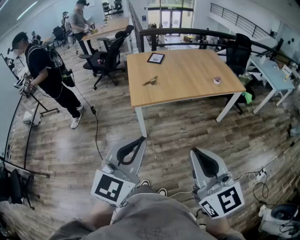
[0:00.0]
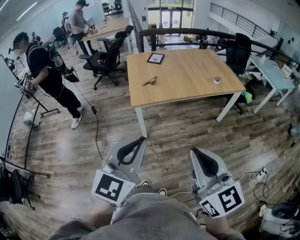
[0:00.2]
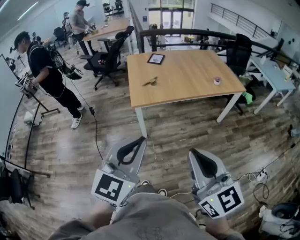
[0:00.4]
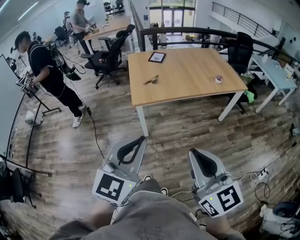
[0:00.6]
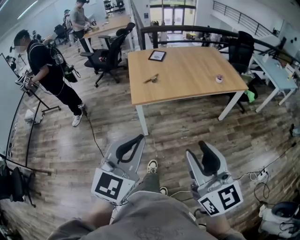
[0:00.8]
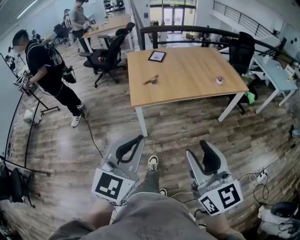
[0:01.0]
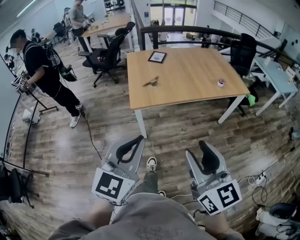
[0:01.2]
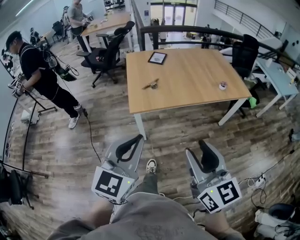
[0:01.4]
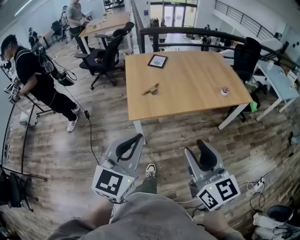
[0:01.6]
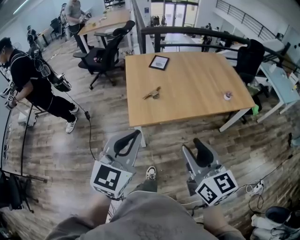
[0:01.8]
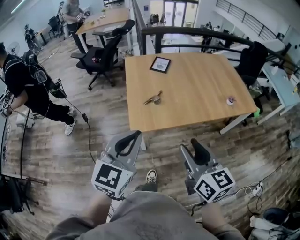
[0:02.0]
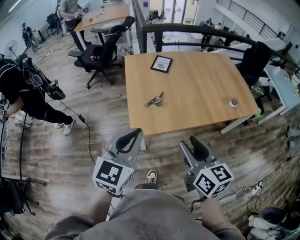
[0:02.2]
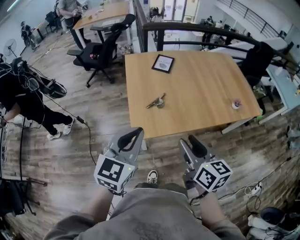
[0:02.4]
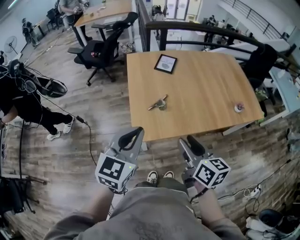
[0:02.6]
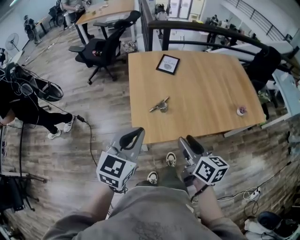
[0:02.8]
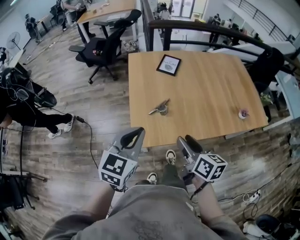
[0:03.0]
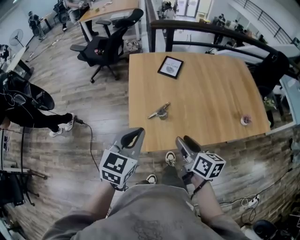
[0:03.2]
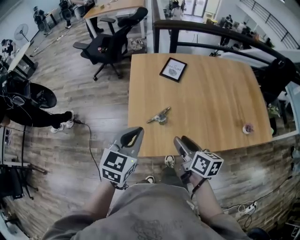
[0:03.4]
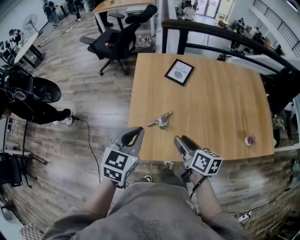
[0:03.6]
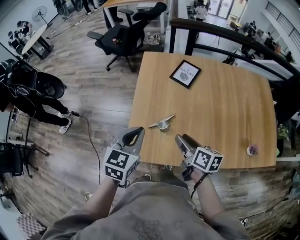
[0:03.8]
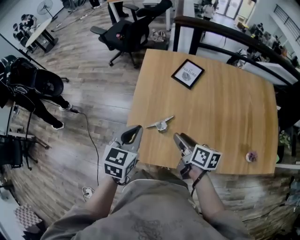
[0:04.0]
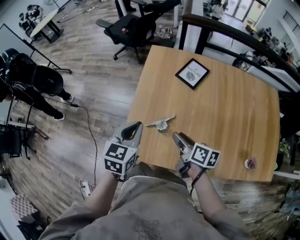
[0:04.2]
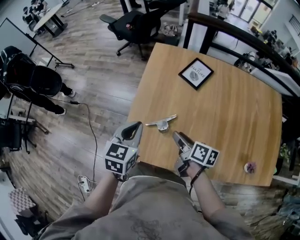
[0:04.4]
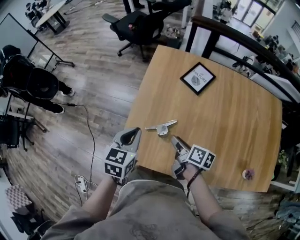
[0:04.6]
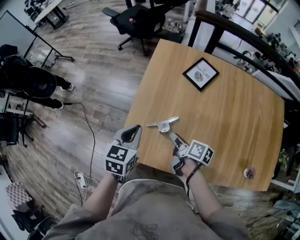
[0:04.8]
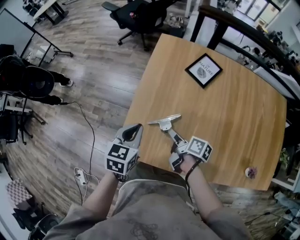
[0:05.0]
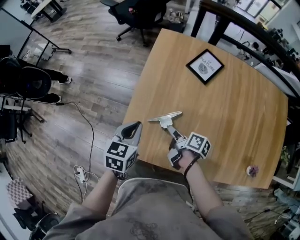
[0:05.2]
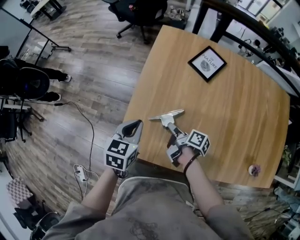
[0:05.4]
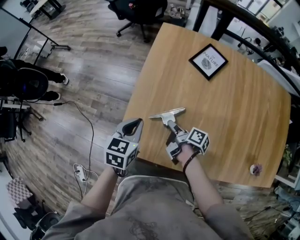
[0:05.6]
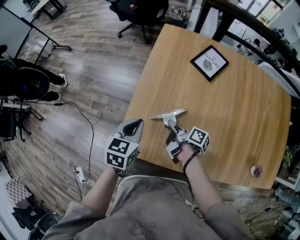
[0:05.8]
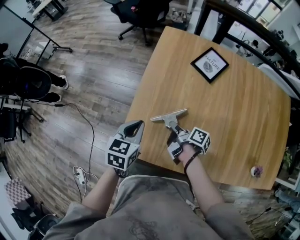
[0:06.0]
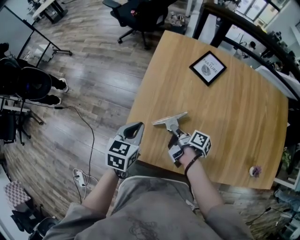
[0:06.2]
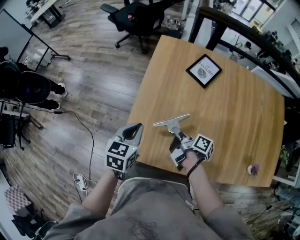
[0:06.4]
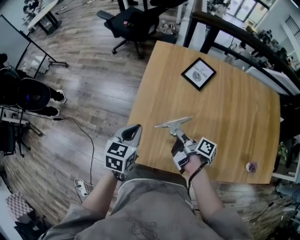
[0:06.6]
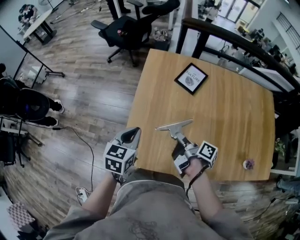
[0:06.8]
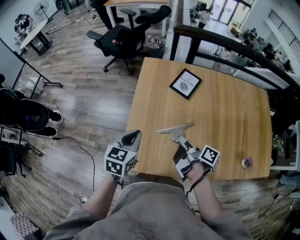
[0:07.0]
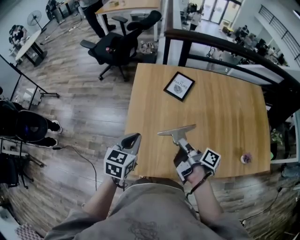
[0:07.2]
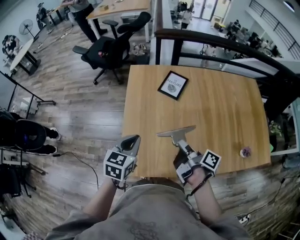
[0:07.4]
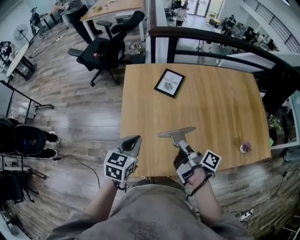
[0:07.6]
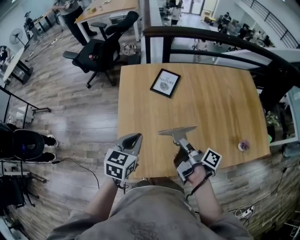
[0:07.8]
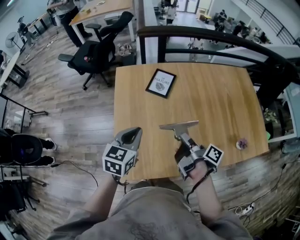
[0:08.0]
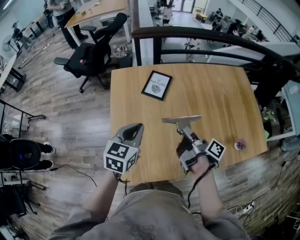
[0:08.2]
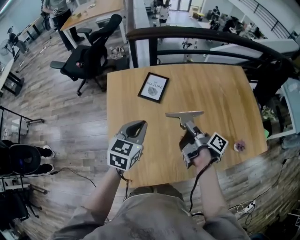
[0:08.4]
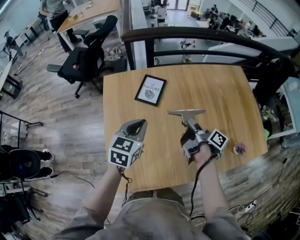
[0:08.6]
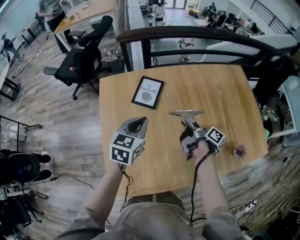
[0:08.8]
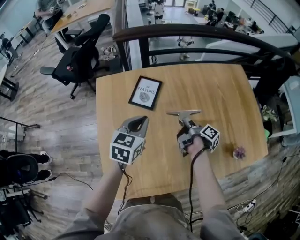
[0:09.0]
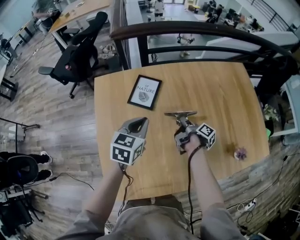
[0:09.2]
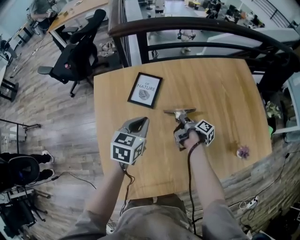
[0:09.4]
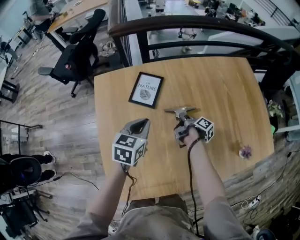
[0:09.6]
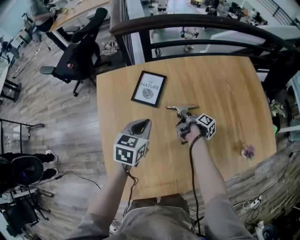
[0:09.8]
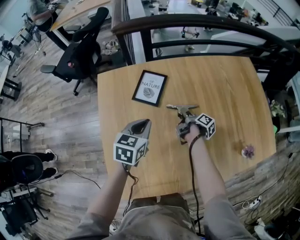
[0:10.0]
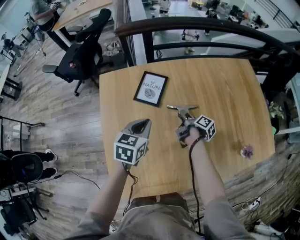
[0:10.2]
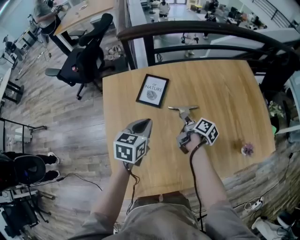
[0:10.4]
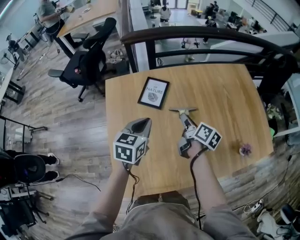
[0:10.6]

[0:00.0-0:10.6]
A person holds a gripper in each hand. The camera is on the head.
0:00.0 to 0:01.6: The grippers both shift forward by some 20 cm. The right gripper opens up.
0:01.6 to 0:03.0: The right gripper is displaced forward and downward by approximately 35 cm, and turns by some 30 degrees. The left gripper heads forward, covering approximately 30 cm.
0:03.0 to 0:04.6: The right gripper ends up about 30 cm from where it was, and swivels approximately 40 degrees. Meanwhile the left gripper ends up about 20 cm from where it was, and rotates roughly 40 degrees.
0:04.6 to 0:06.0: Both grippers move downward, some 10 cm. The right gripper rotates about 20 degrees, and closes up.
0:06.0 to 0:07.6: The right gripper shifts about 20 cm upward and to the right, and changes its angle by some 30 degrees. Meanwhile the left gripper travels upward and to the right by about 15 cm, and changes its angle by roughly 20 degrees.
0:07.6 to 0:09.0: The right gripper heads forward, to the right and downward, covering about 30 cm, and changes its angle by roughly 20 degrees, while the left gripper shifts some 25 cm forward and to the right.
0:09.0 to 0:10.6: The right gripper heads upward and to the left, covering approximately 10 cm, turns by about 40 degrees, and opens its fingers.

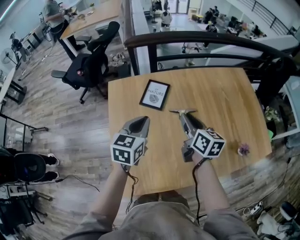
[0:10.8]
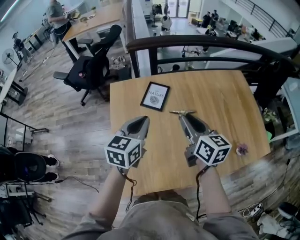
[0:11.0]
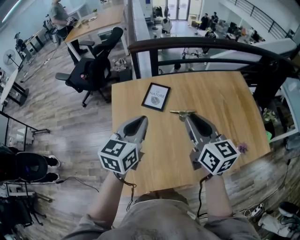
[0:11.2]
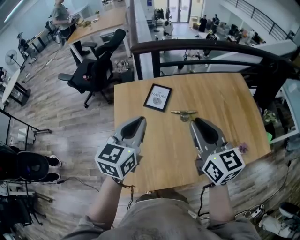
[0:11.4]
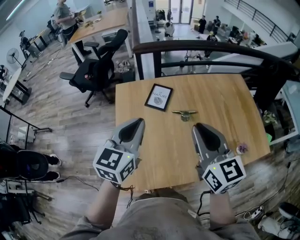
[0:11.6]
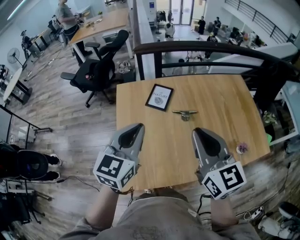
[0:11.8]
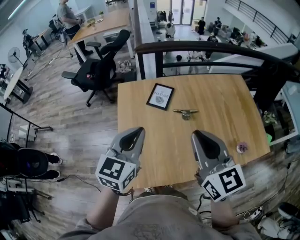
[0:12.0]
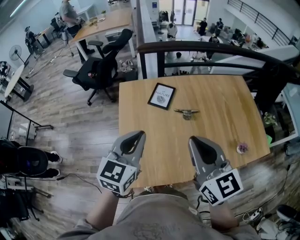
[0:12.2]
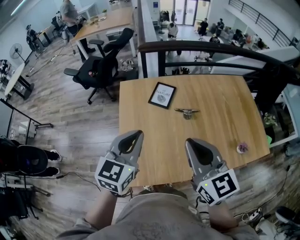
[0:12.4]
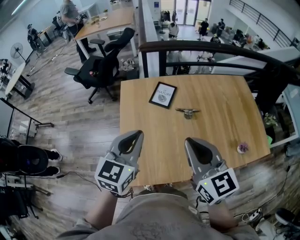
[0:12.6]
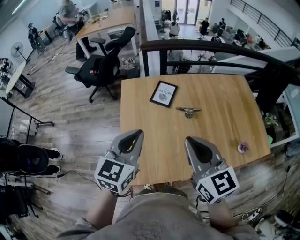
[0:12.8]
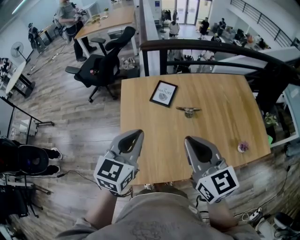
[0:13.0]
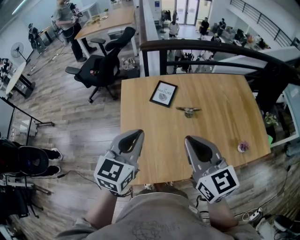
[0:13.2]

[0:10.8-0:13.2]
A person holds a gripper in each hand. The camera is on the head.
0:10.8 to 0:12.0: The left gripper moves backward and upward, about 20 cm. The right gripper heads upward and backward, covering some 25 cm, and swivels about 30 degrees.
0:12.0 to 0:13.2: The grippers stay close to where they were, moving slightly.

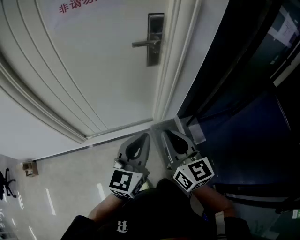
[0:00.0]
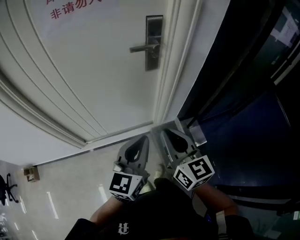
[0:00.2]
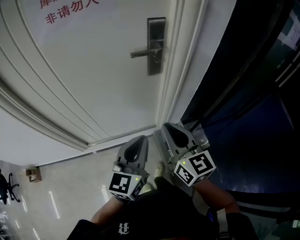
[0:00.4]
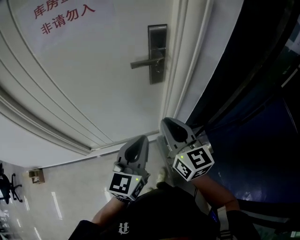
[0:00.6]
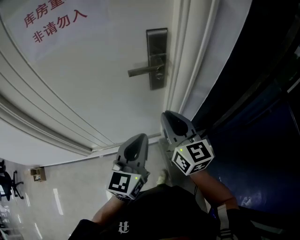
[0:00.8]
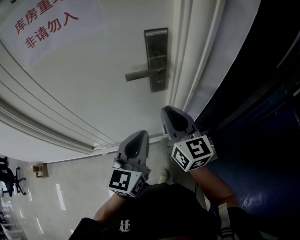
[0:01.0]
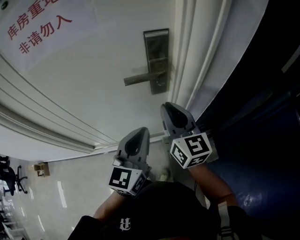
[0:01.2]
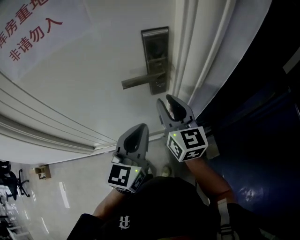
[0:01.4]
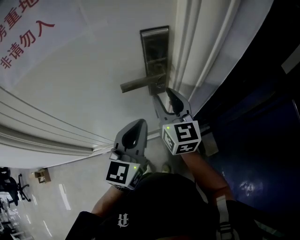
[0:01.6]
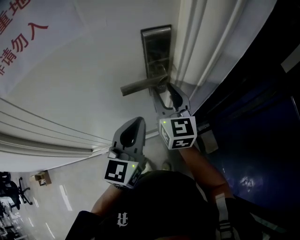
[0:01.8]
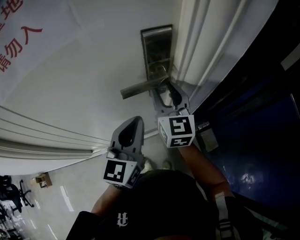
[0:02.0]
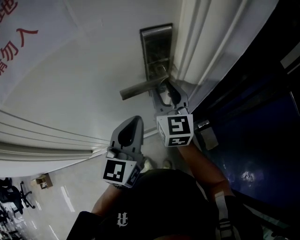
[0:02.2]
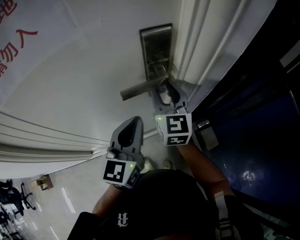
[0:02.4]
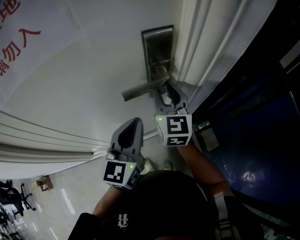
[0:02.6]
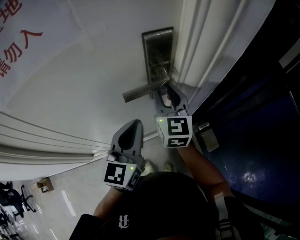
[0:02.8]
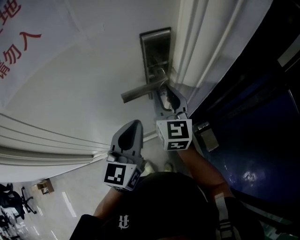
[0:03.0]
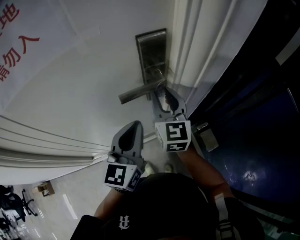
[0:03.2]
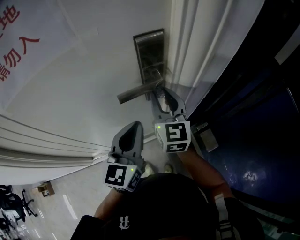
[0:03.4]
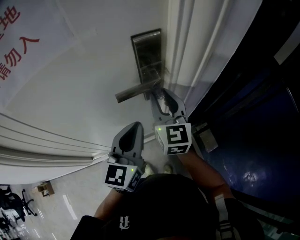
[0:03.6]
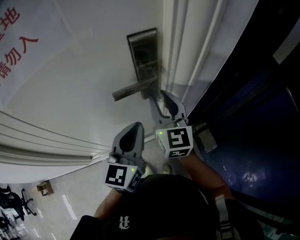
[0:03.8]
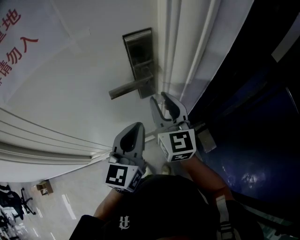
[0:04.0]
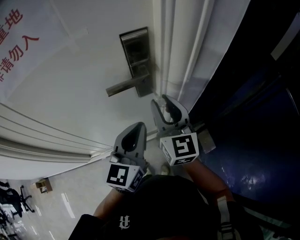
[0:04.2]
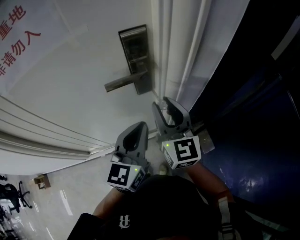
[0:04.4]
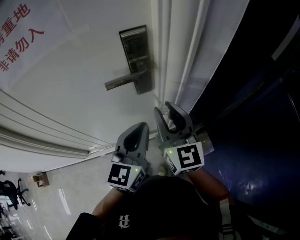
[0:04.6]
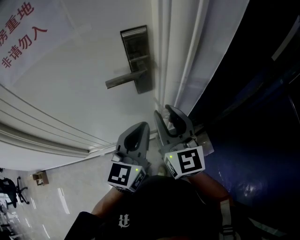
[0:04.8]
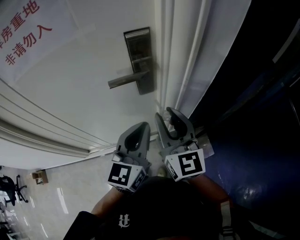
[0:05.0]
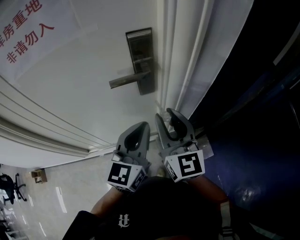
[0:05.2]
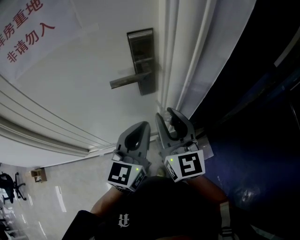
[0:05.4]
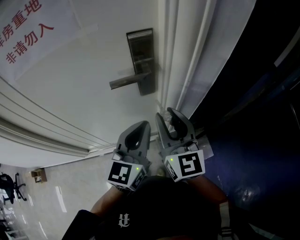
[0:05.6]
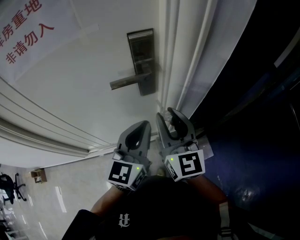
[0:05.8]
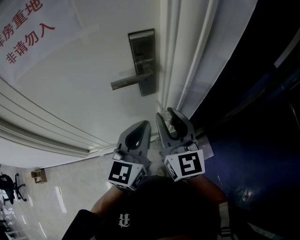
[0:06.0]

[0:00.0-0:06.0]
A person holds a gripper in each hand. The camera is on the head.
0:00.0 to 0:01.6: The grippers both shift forward by approximately 30 cm. The right gripper opens its fingers.
0:01.6 to 0:03.0: The grippers stay close to where they were, moving slightly.
0:03.0 to 0:04.4: The right gripper is displaced backward and to the right by approximately 10 cm. The left gripper travels to the right by approximately 5 cm.
0:04.4 to 0:06.0: The grippers stay close to where they were, moving slightly.

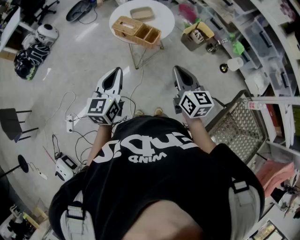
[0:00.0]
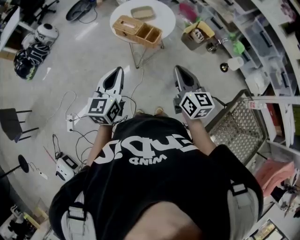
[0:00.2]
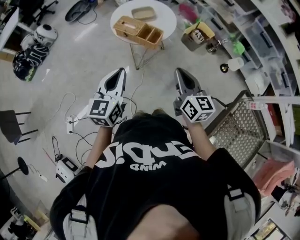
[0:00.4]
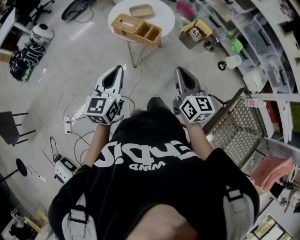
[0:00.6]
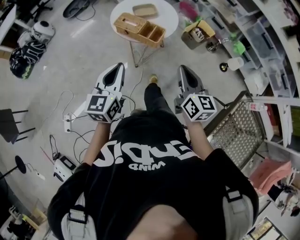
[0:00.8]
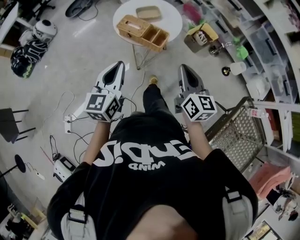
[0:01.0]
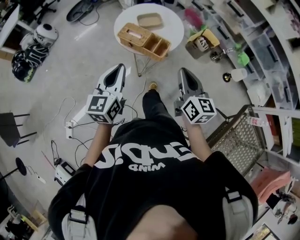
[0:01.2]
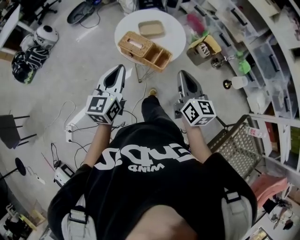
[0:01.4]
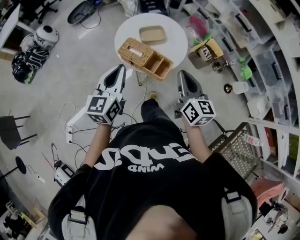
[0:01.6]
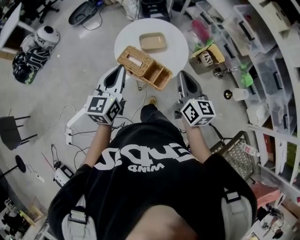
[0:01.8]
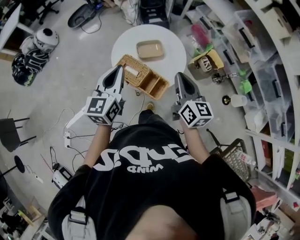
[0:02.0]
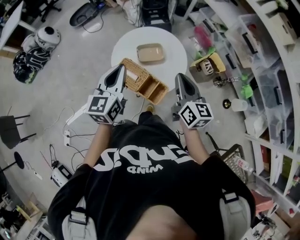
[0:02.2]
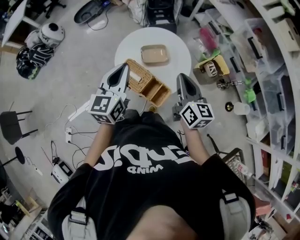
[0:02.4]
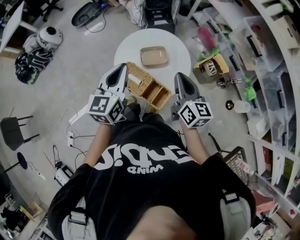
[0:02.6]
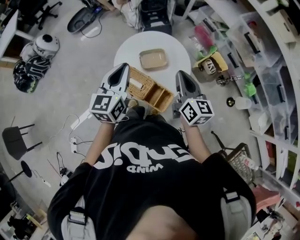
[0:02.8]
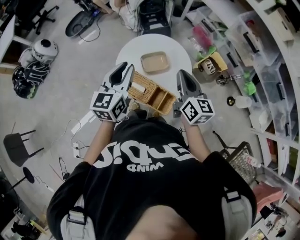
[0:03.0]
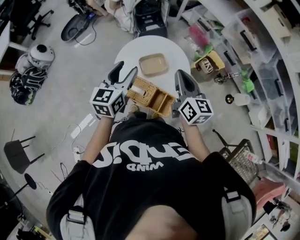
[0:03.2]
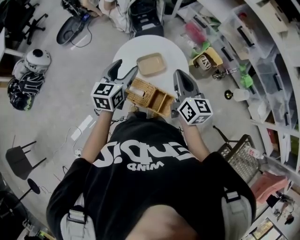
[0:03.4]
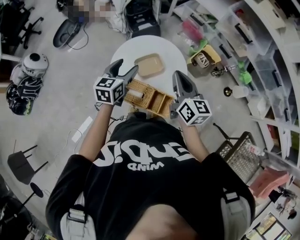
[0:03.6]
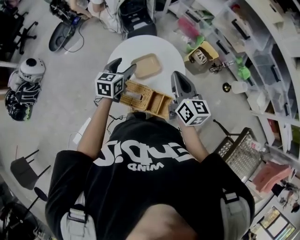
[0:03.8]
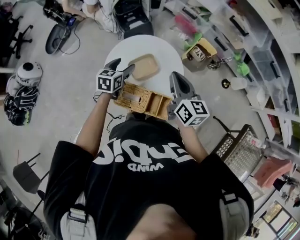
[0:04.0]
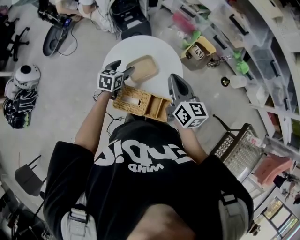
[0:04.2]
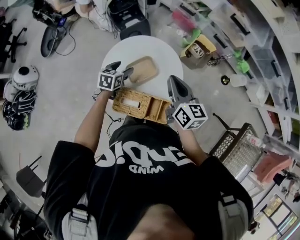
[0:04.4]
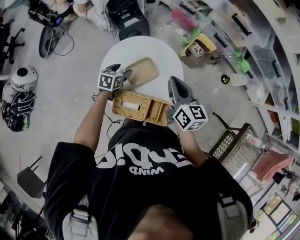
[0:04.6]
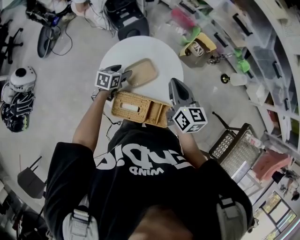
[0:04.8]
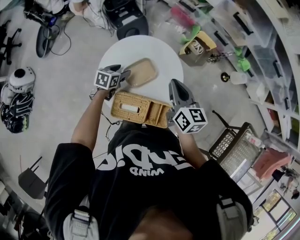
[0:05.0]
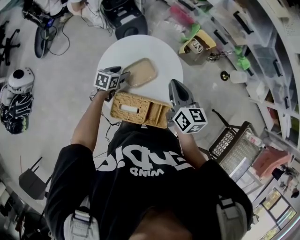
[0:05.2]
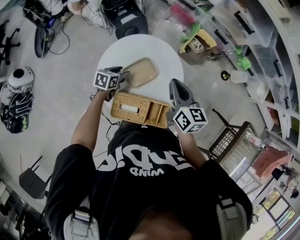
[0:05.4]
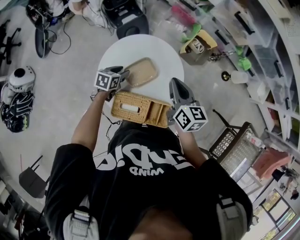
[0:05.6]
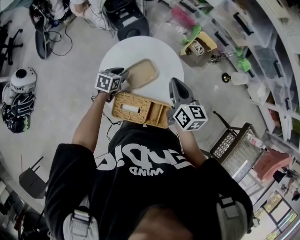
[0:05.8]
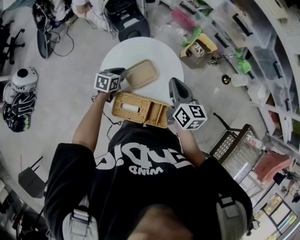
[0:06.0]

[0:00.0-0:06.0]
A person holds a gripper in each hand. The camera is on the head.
0:00.0 to 0:01.6: Both grippers move forward, roughly 25 cm.
0:01.6 to 0:03.0: The grippers both shift forward by roughly 20 cm.
0:03.0 to 0:04.4: The right gripper moves downward and forward, approximately 5 cm, while the left gripper goes about 30 cm downward and forward, tips its fingers downward by about 30 degrees, and opens.
0:04.4 to 0:06.0: The left gripper closes its fingers.
